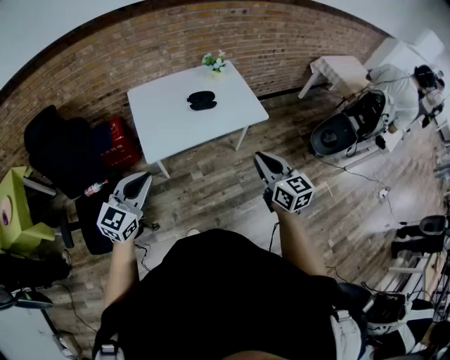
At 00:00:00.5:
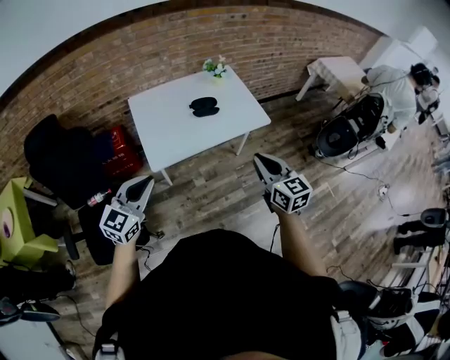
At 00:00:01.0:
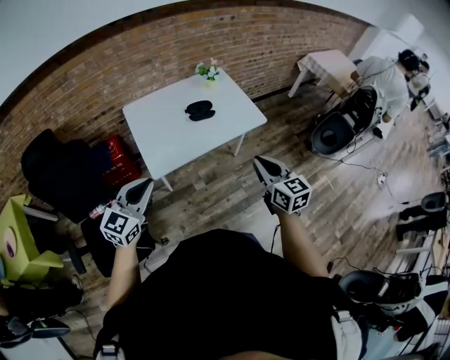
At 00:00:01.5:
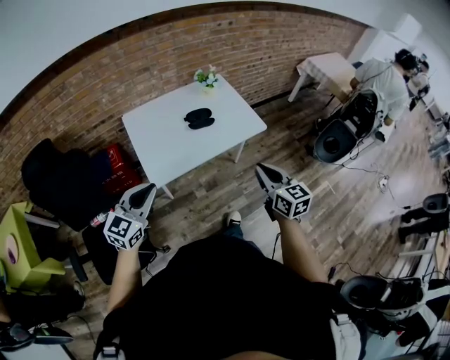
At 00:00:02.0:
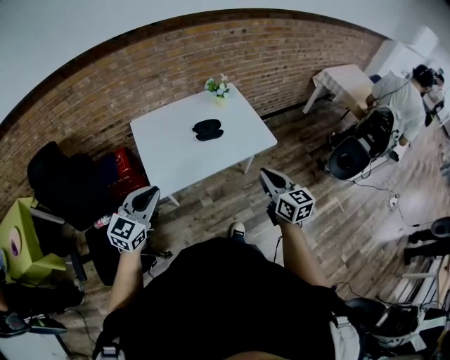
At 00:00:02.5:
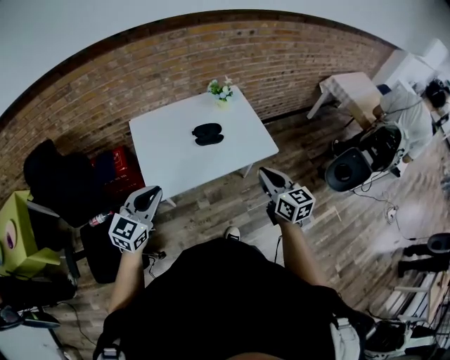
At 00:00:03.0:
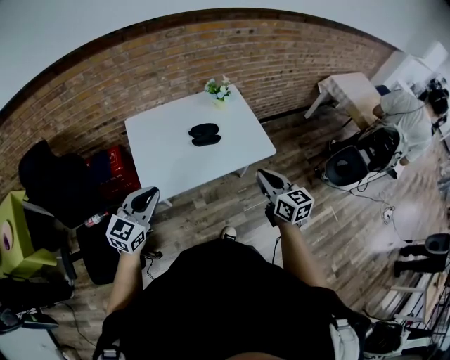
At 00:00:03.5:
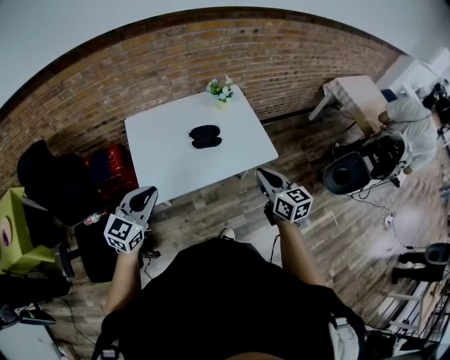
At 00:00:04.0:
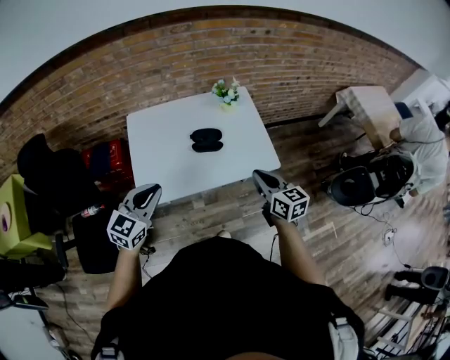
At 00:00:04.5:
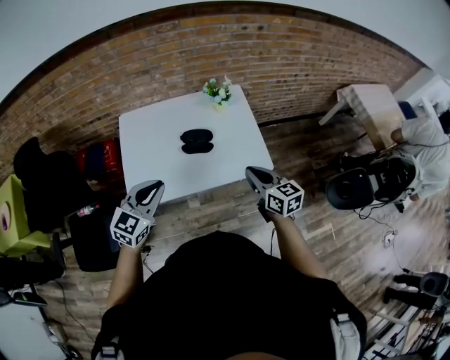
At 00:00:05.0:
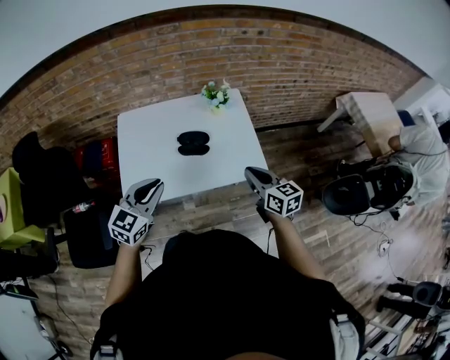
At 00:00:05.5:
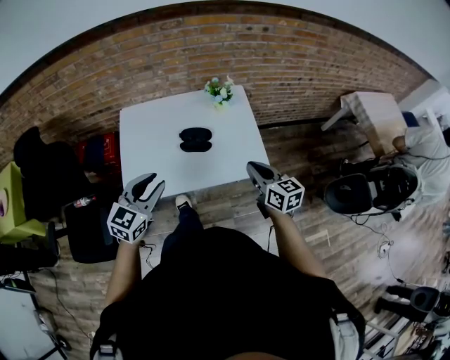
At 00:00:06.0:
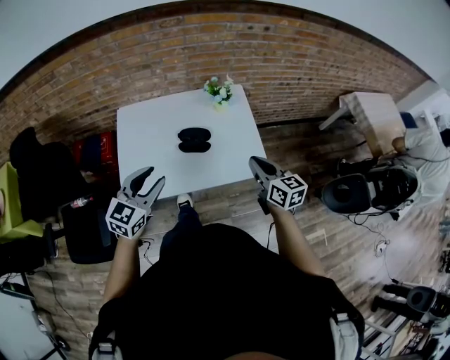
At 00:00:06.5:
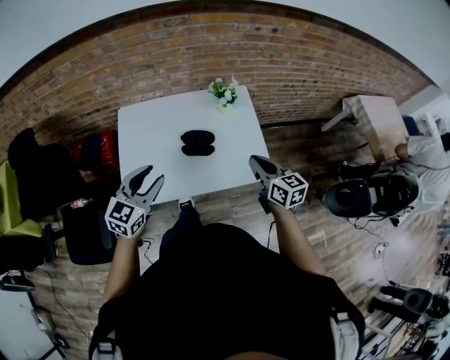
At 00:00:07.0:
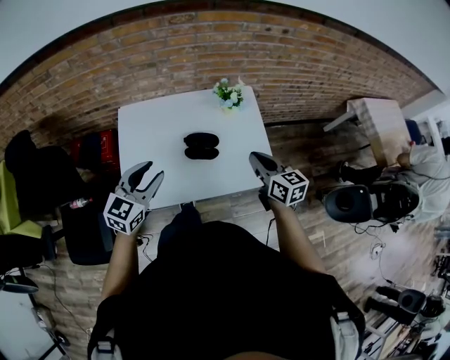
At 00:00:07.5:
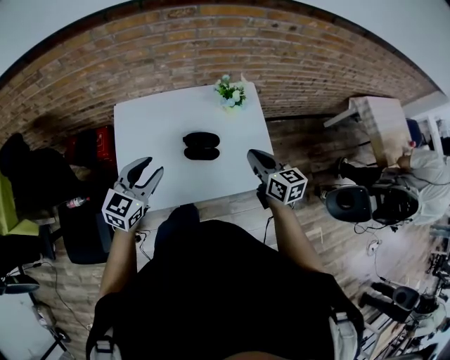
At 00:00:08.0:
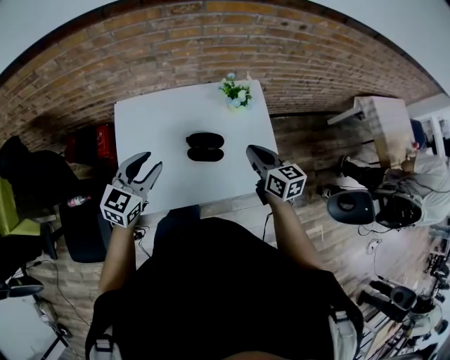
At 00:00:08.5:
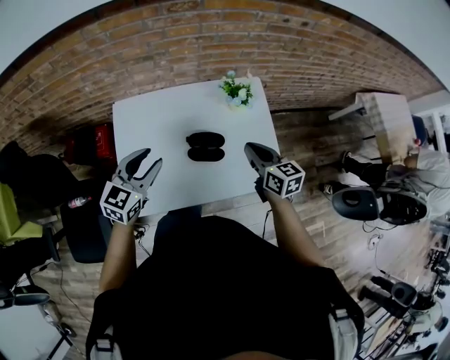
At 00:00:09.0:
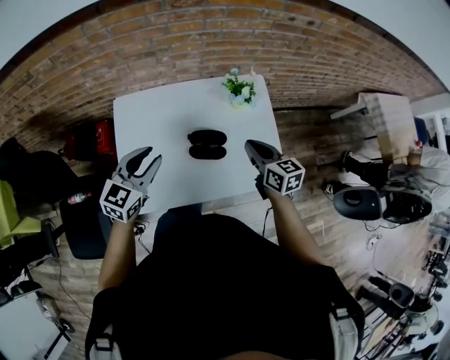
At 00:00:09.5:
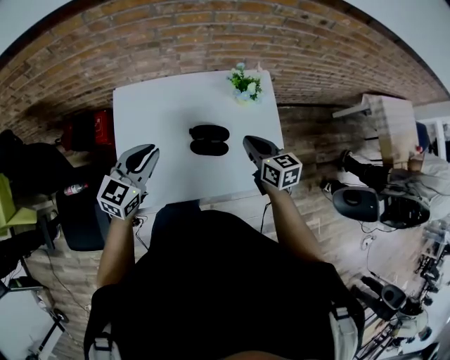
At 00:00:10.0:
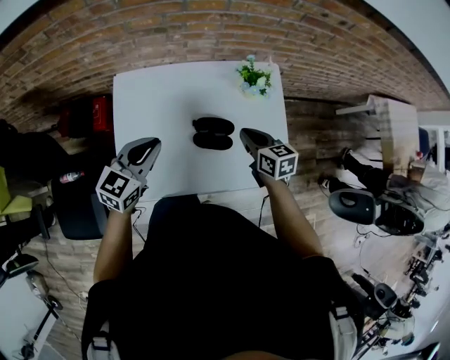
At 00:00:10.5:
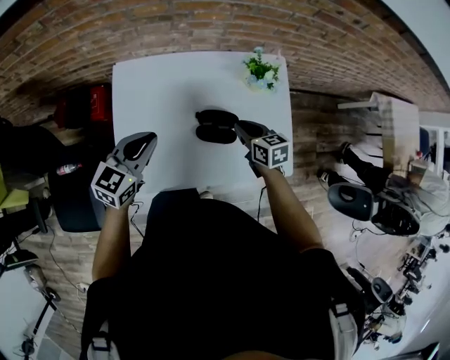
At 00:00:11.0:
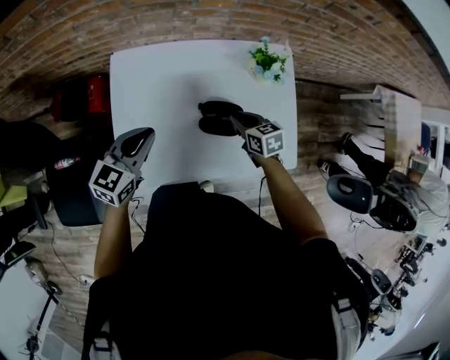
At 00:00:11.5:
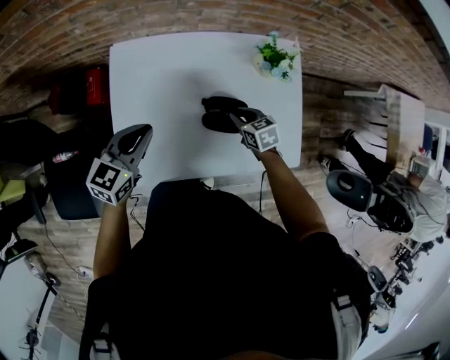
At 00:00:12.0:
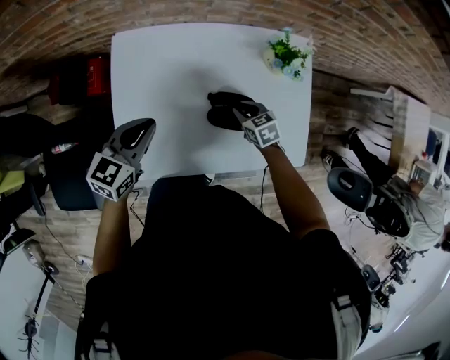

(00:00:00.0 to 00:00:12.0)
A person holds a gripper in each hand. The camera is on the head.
00:00:00.0 - 00:00:02.0: Both grippers travel together forward, approximately 10 cm.
00:00:02.0 - 00:00:04.0: The right gripper heads forward, covering roughly 15 cm. The left gripper travels forward and to the right by about 15 cm.
00:00:04.0 - 00:00:06.0: The left gripper goes approximately 10 cm to the right and forward, and opens, while the right gripper goes approximately 10 cm forward and to the right.
00:00:06.0 - 00:00:08.0: The right gripper moves forward and to the left, approximately 20 cm, while the left gripper shifts roughly 15 cm forward.
00:00:08.0 - 00:00:10.0: The right gripper is displaced downward, forward and to the left by about 10 cm. The left gripper changes place by some 5 cm, and closes.
00:00:10.0 - 00:00:12.0: The right gripper is displaced downward by approximately 20 cm, and rotates some 30 degrees. Meanwhile the left gripper heads downward and to the left, covering approximately 10 cm.

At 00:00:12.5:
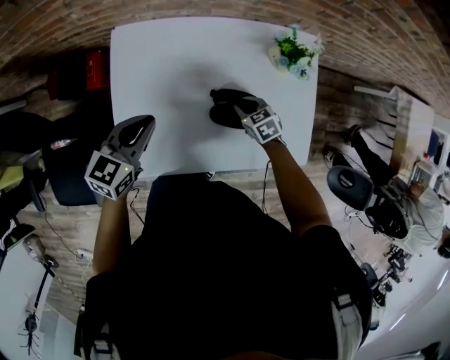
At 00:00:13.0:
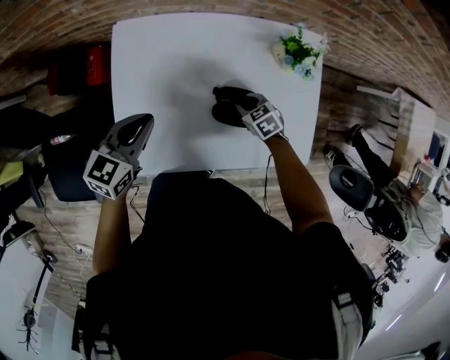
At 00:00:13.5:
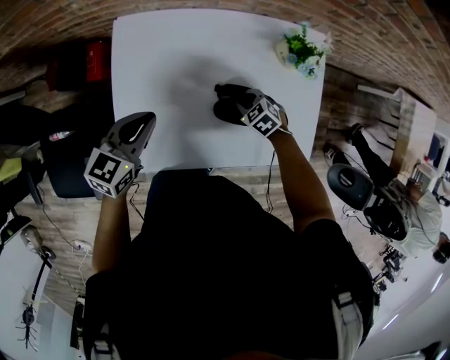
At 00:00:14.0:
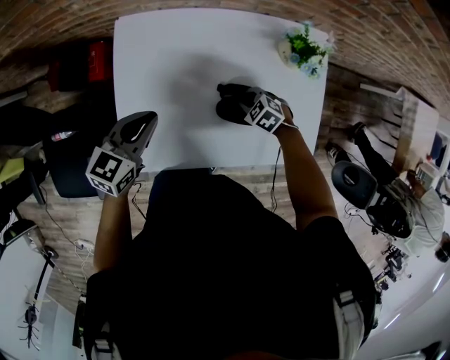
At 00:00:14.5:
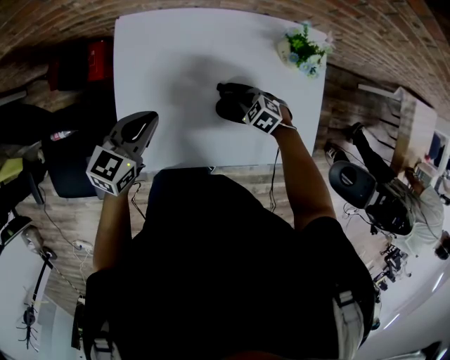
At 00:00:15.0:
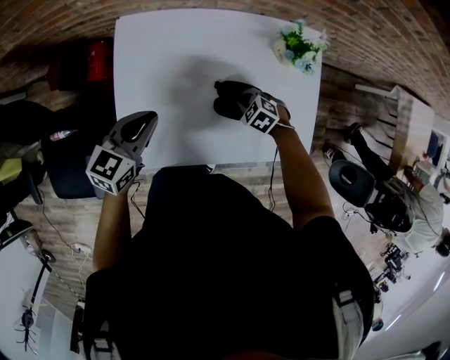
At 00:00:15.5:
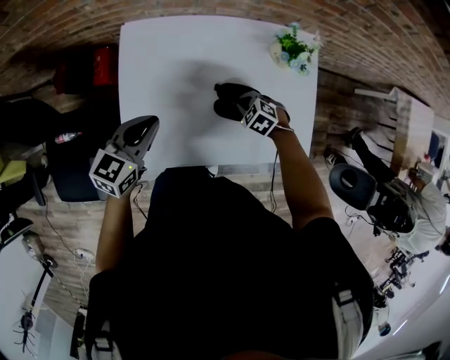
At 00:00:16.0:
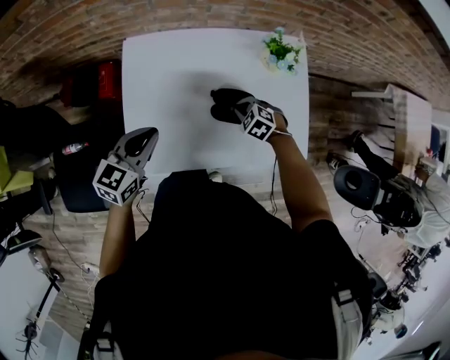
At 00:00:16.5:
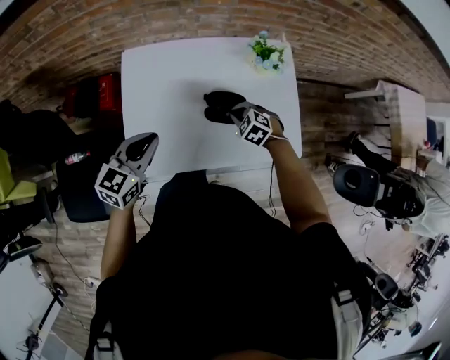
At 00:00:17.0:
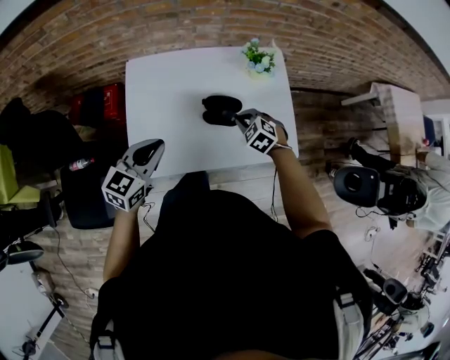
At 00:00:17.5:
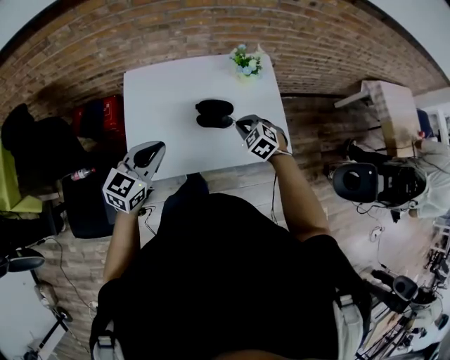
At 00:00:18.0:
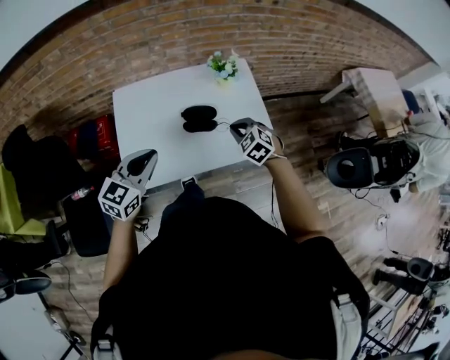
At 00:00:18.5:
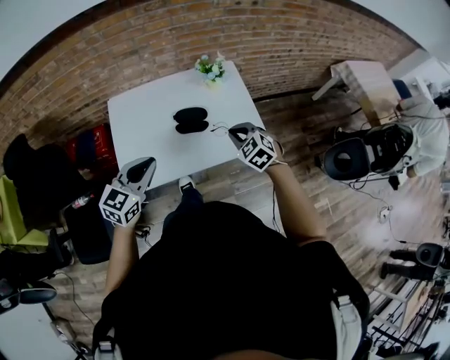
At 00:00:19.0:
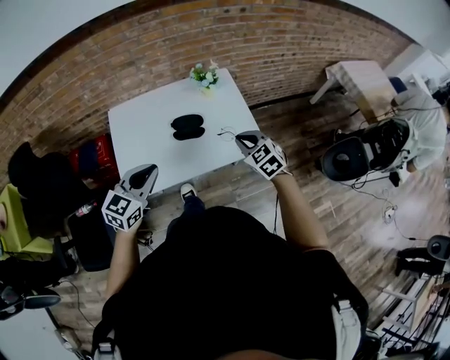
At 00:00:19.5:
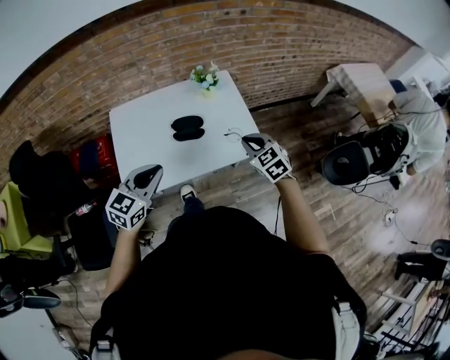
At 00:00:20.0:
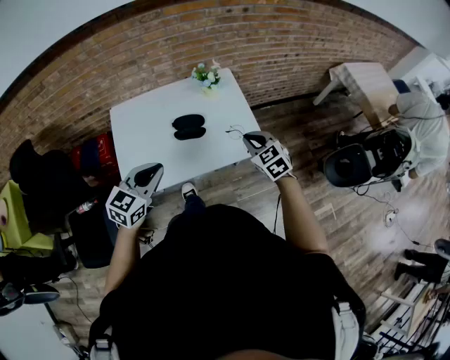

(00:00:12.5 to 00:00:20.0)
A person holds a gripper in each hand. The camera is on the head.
00:00:12.5 - 00:00:14.5: The right gripper swivels about 30 degrees.
00:00:14.5 - 00:00:16.5: The right gripper moves upward and backward, roughly 15 cm. Meanwhile the left gripper is displaced backward and upward by approximately 15 cm.
00:00:16.5 - 00:00:18.0: The left gripper goes about 15 cm backward, upward and to the right. Meanwhile the right gripper heads upward, backward and to the right, covering some 20 cm, and turns by about 20 degrees.
00:00:18.0 - 00:00:20.0: The right gripper is displaced to the right, upward and backward by about 15 cm, and turns by some 20 degrees, while the left gripper is displaced to the right by approximately 5 cm.

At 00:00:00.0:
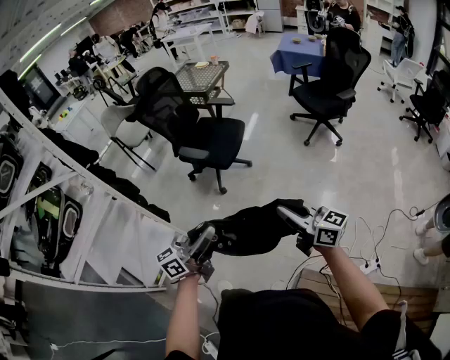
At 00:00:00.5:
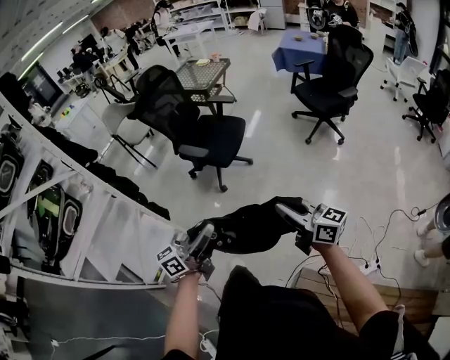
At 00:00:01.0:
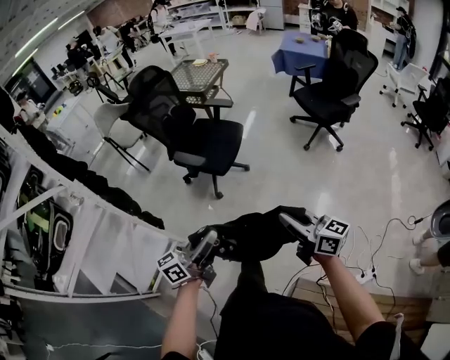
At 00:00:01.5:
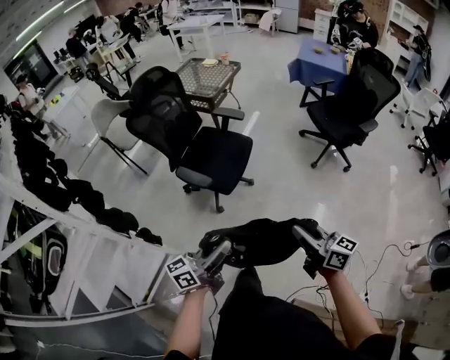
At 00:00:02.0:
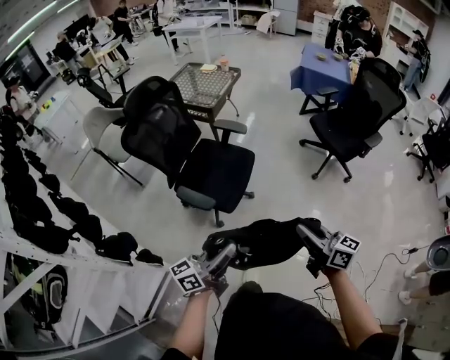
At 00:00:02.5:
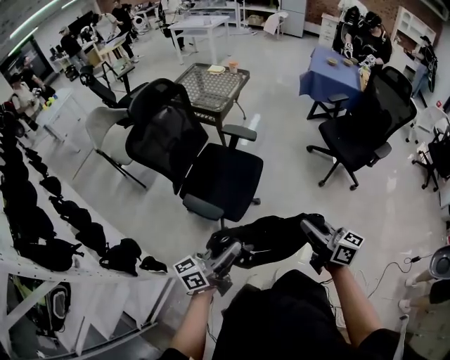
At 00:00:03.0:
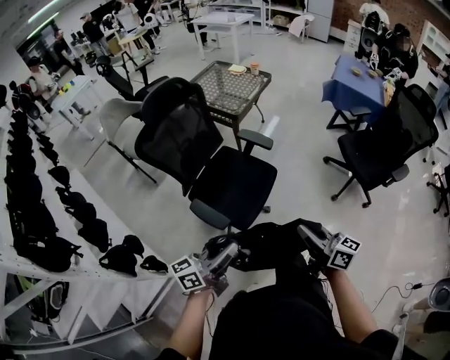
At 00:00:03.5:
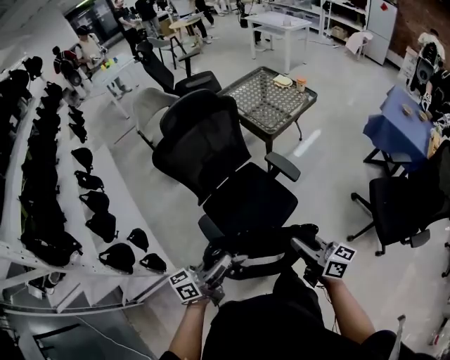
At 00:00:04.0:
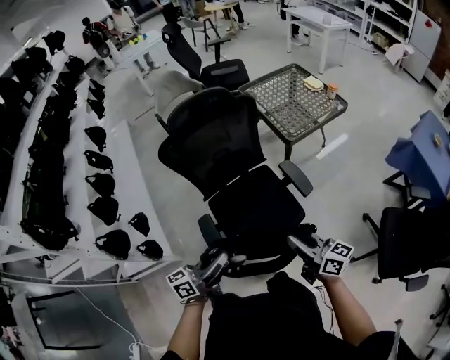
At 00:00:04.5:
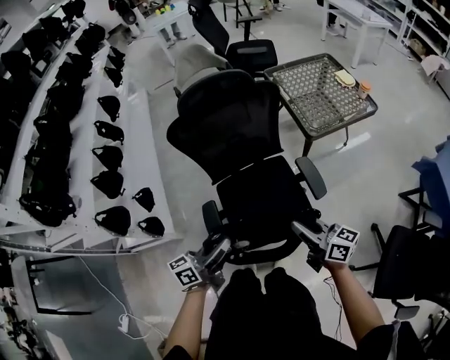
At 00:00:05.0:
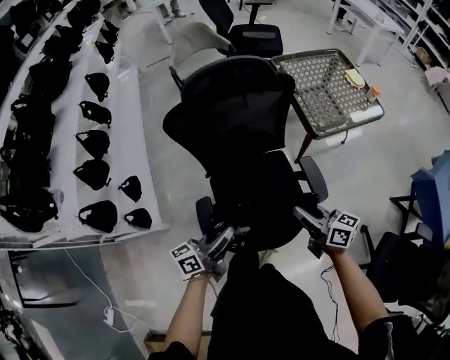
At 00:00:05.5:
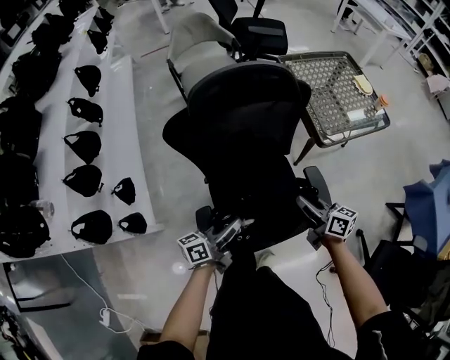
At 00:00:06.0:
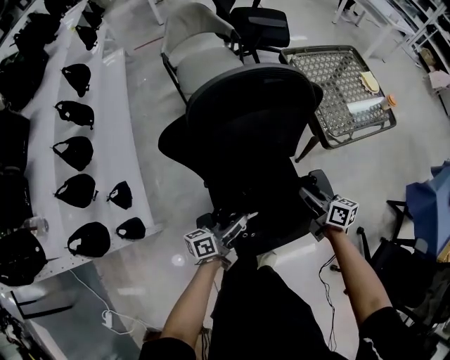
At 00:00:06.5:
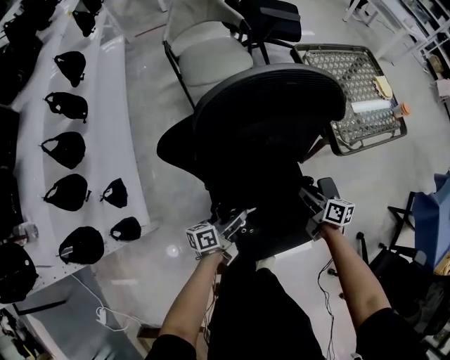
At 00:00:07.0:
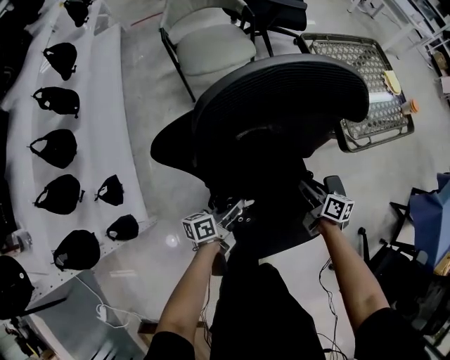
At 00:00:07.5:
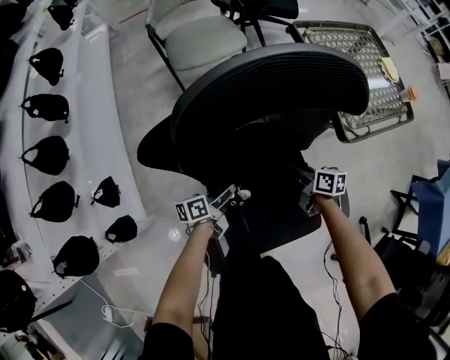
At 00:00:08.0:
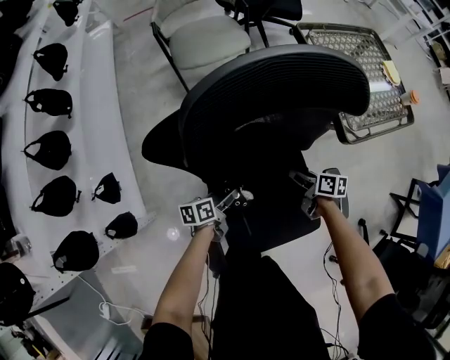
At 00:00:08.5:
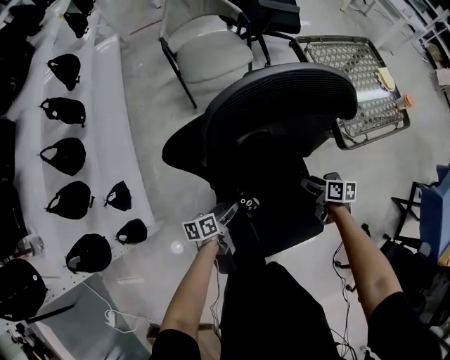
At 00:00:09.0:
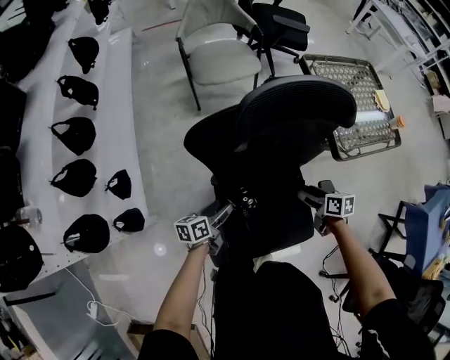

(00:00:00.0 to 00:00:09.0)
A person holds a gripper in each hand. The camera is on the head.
00:00:00.0 - 00:00:02.0: Both grippers move forward, approximately 40 cm.
00:00:02.0 - 00:00:04.5: Both grippers are carried some 50 cm. The left gripper turns by some 50 degrees; the right gripper changes its angle by roughly 50 degrees.
00:00:04.5 - 00:00:07.0: The grippers both shift forward and downward by roughly 50 cm. The right gripper turns by roughly 30 degrees. Meanwhile the left gripper swivels roughly 30 degrees.
00:00:07.0 - 00:00:09.0: The left gripper is displaced to the left by roughly 10 cm, goes downward and returns, roughly 5 cm each way, and opens; the right gripper heads upward, covering roughly 5 cm, turns by about 20 degrees, and opens.
